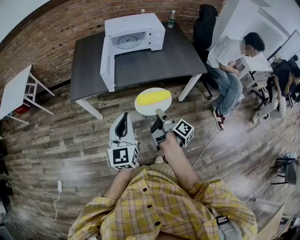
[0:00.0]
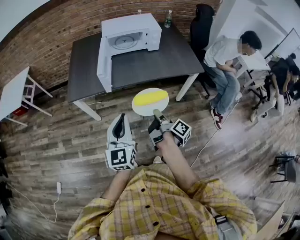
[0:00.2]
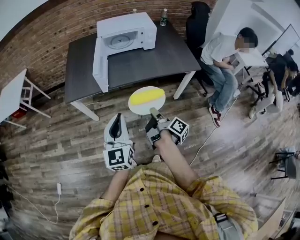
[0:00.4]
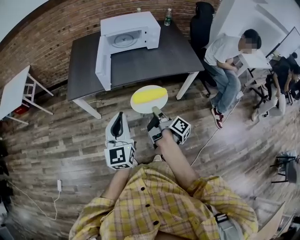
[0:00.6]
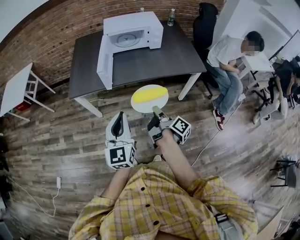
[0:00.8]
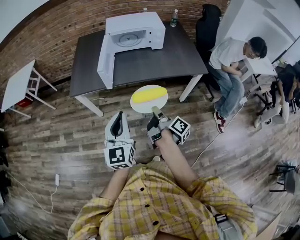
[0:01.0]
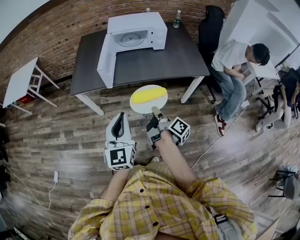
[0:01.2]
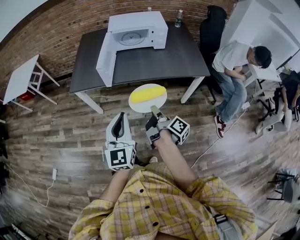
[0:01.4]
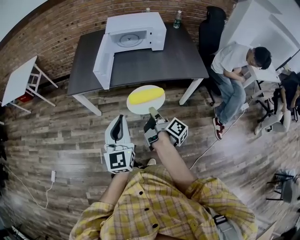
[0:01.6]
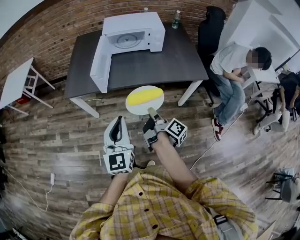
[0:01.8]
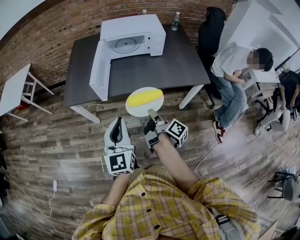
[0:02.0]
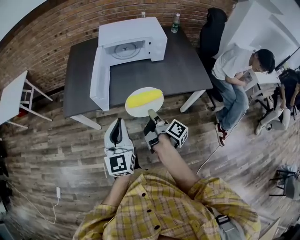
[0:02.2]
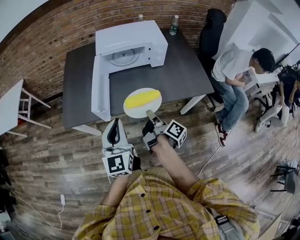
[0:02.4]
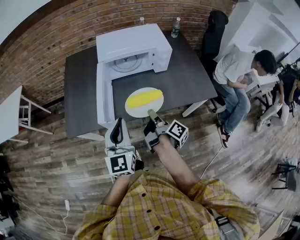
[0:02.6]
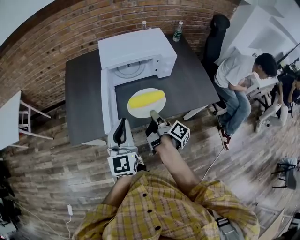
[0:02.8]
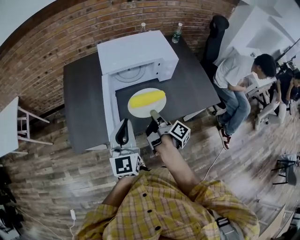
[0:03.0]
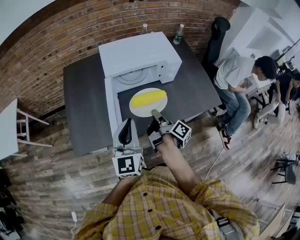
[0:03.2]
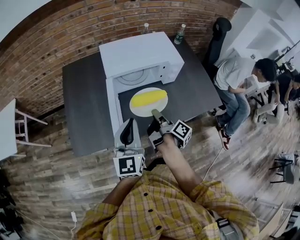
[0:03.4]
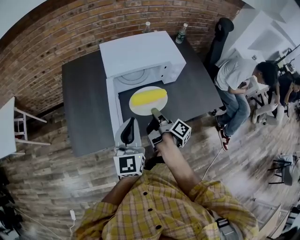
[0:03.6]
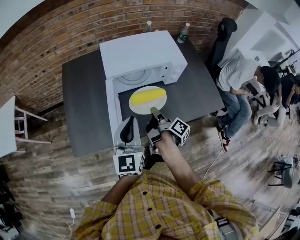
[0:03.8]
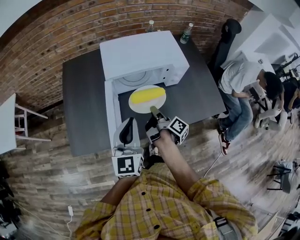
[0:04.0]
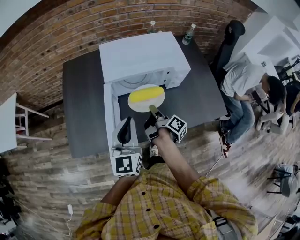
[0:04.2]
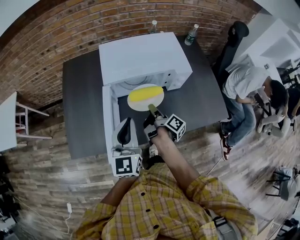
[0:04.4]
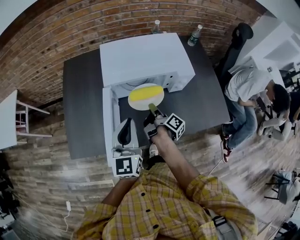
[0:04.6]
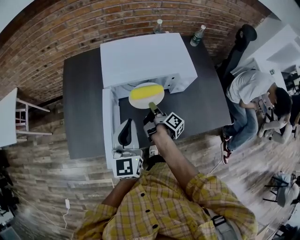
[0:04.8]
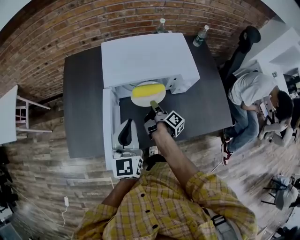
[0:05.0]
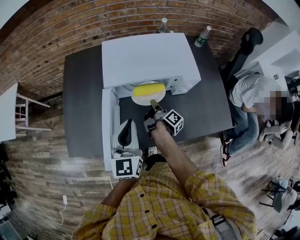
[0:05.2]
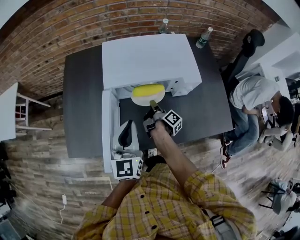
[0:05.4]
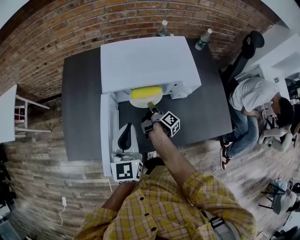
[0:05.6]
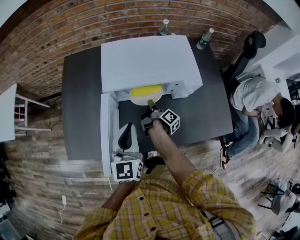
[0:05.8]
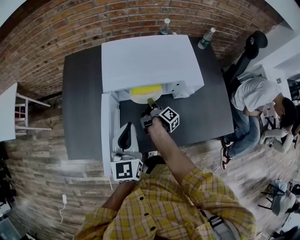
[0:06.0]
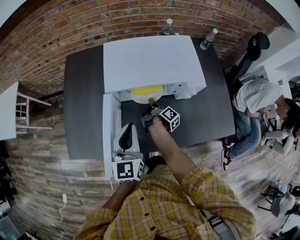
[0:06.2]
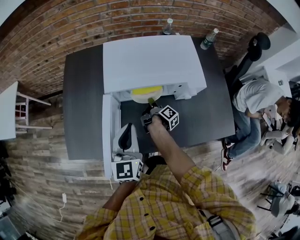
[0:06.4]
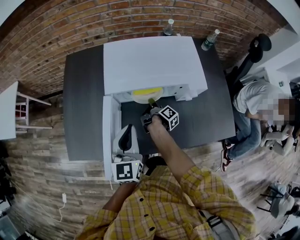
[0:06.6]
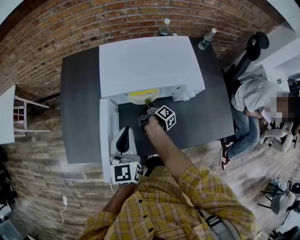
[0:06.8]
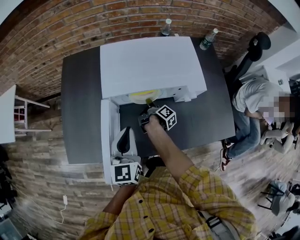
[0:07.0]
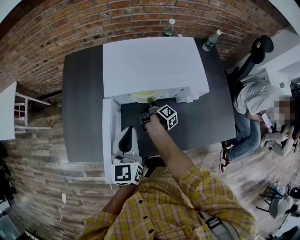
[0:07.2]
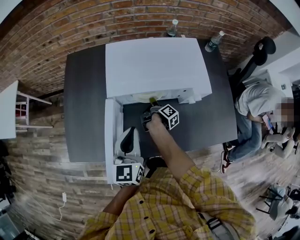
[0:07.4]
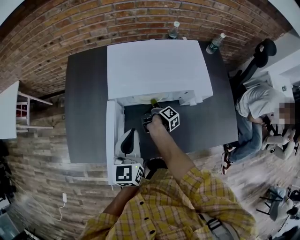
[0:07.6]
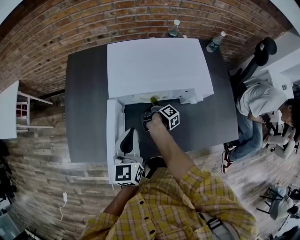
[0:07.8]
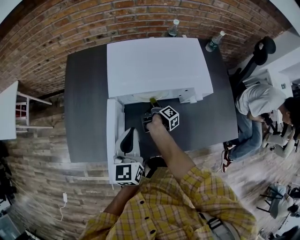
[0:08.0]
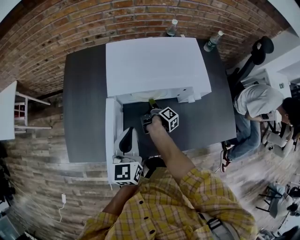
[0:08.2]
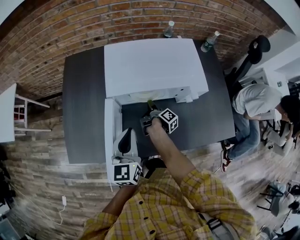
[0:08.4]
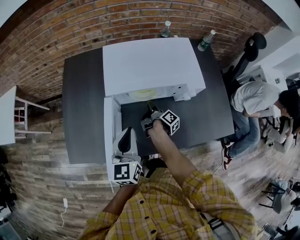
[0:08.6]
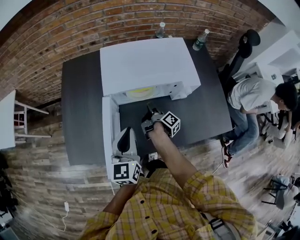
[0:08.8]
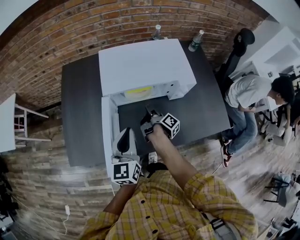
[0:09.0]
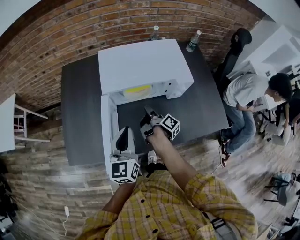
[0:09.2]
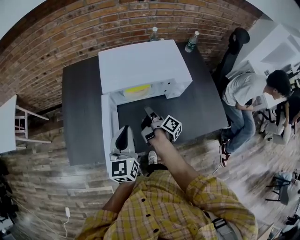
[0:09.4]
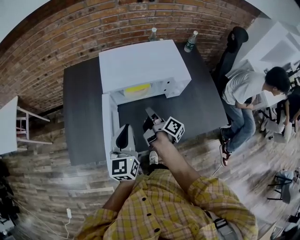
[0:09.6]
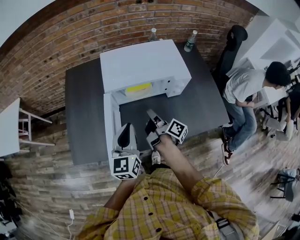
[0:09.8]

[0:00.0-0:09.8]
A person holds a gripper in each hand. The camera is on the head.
0.0 to 1.4 s: The left gripper changes place by roughly 5 cm.
1.4 to 2.8 s: The left gripper shifts by some 35 cm.
2.8 to 4.2 s: The left gripper shifts by approximately 15 cm.
4.2 to 5.6 s: The left gripper moves about 10 cm.
8.4 to 9.8 s: The left gripper changes place by roughly 5 cm.

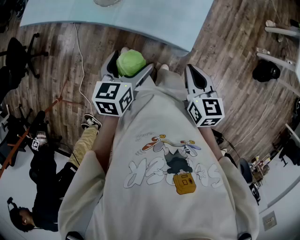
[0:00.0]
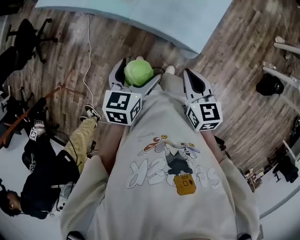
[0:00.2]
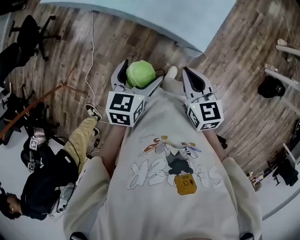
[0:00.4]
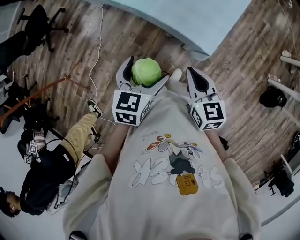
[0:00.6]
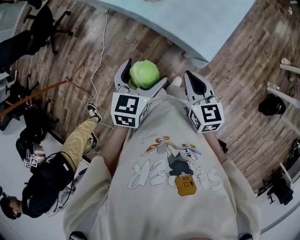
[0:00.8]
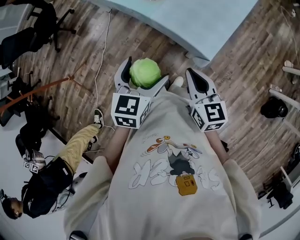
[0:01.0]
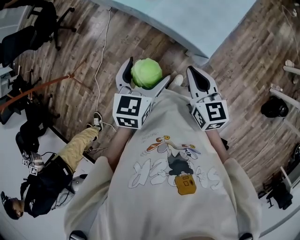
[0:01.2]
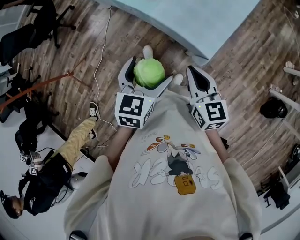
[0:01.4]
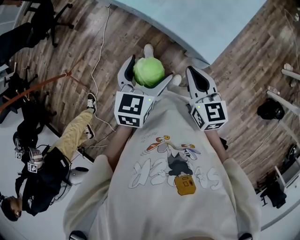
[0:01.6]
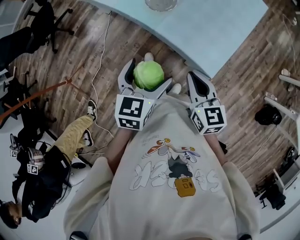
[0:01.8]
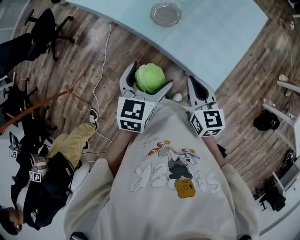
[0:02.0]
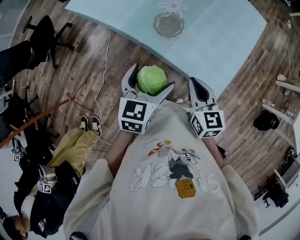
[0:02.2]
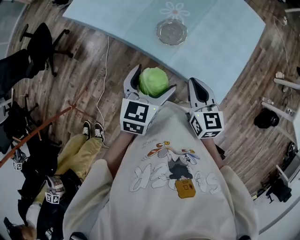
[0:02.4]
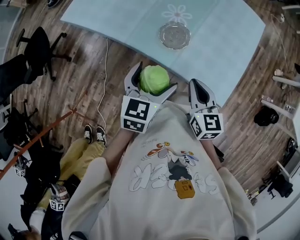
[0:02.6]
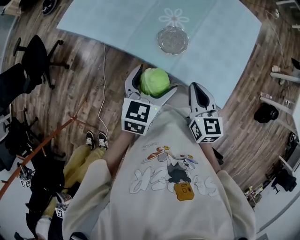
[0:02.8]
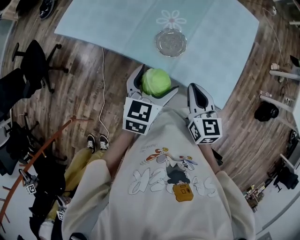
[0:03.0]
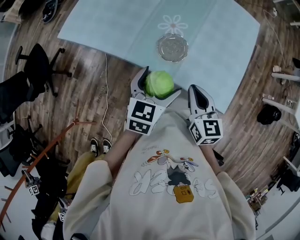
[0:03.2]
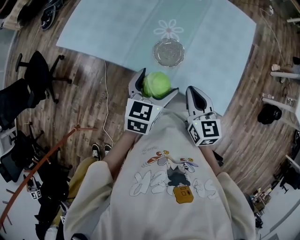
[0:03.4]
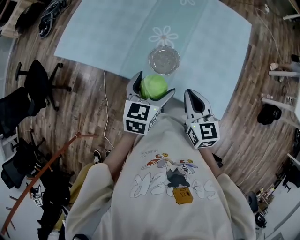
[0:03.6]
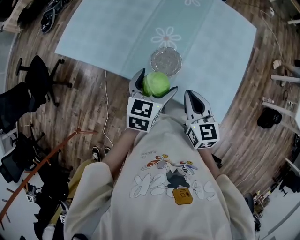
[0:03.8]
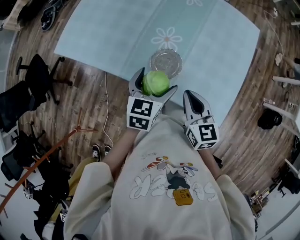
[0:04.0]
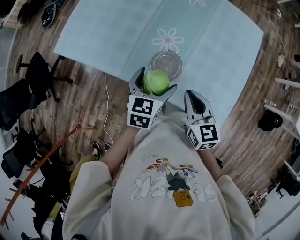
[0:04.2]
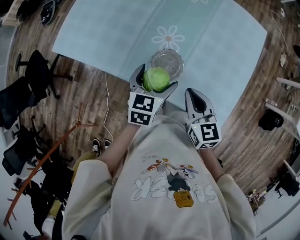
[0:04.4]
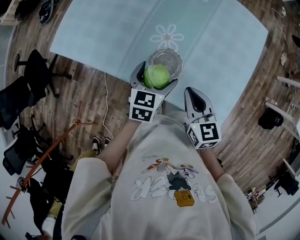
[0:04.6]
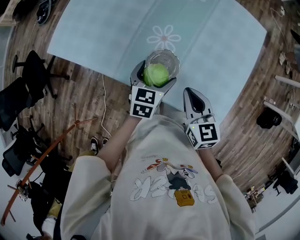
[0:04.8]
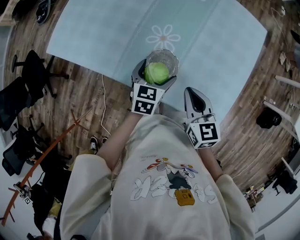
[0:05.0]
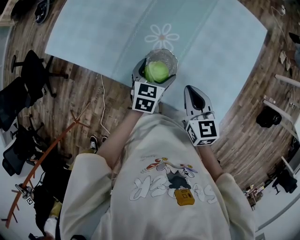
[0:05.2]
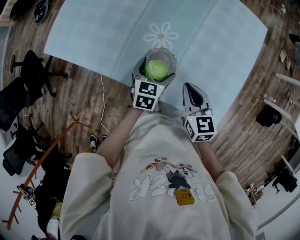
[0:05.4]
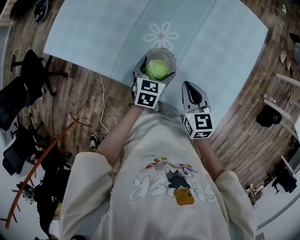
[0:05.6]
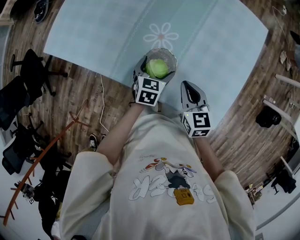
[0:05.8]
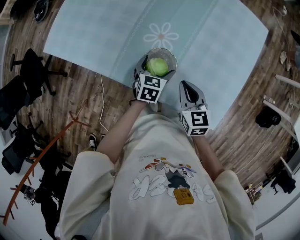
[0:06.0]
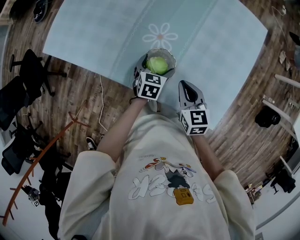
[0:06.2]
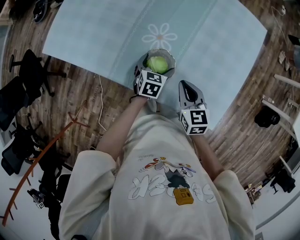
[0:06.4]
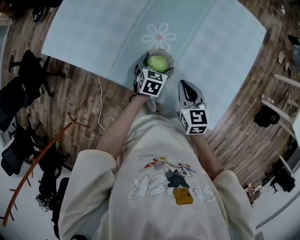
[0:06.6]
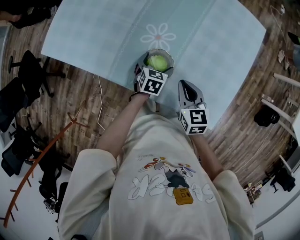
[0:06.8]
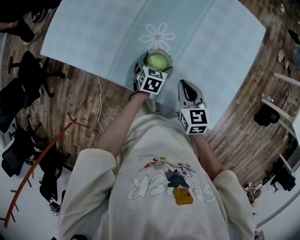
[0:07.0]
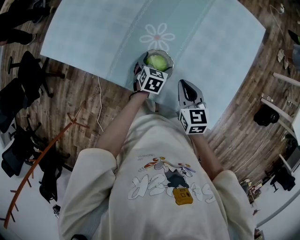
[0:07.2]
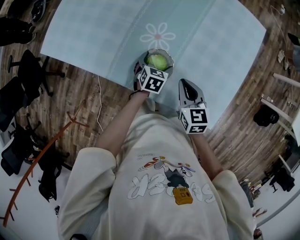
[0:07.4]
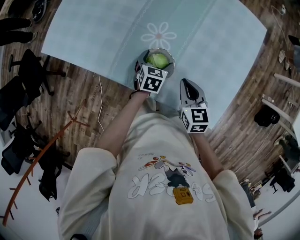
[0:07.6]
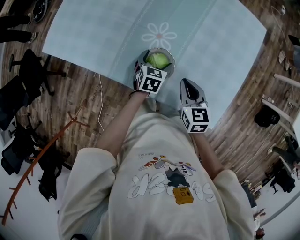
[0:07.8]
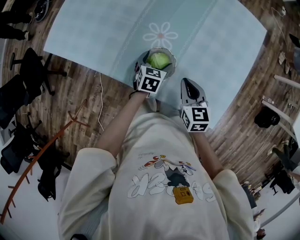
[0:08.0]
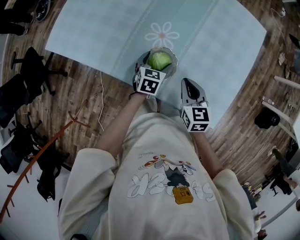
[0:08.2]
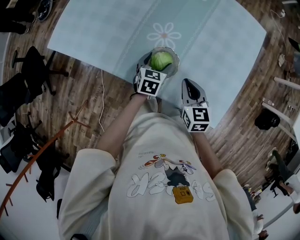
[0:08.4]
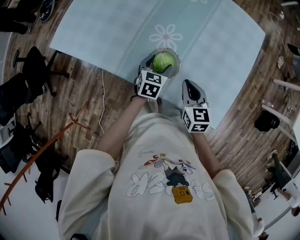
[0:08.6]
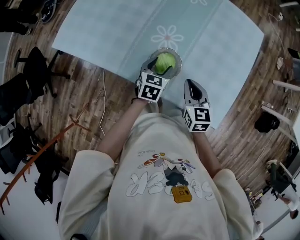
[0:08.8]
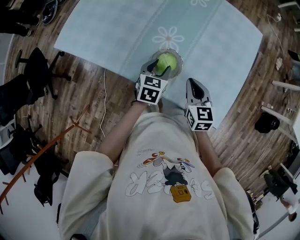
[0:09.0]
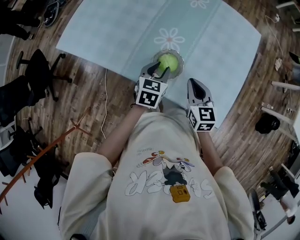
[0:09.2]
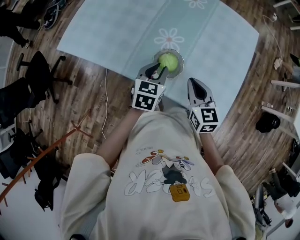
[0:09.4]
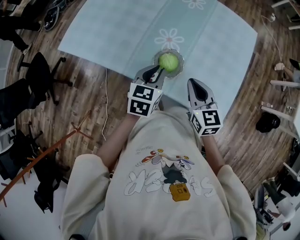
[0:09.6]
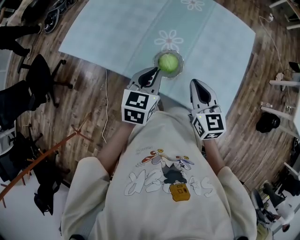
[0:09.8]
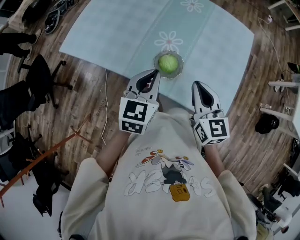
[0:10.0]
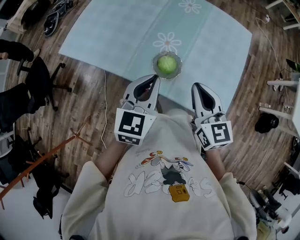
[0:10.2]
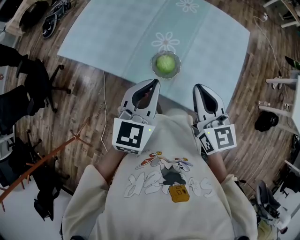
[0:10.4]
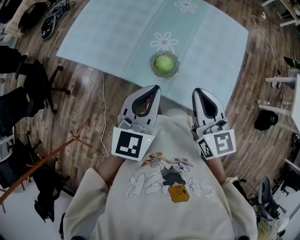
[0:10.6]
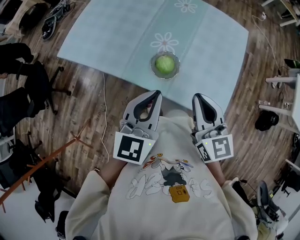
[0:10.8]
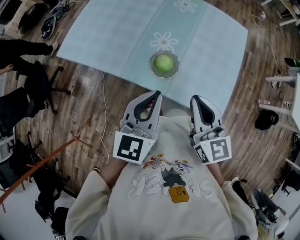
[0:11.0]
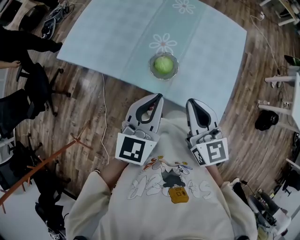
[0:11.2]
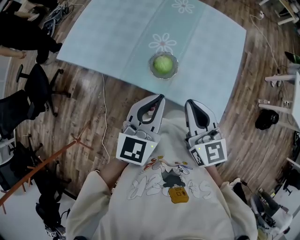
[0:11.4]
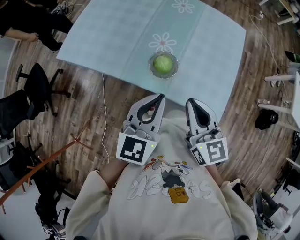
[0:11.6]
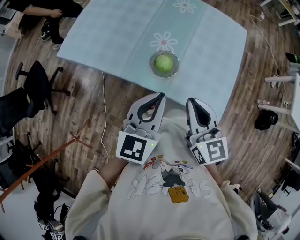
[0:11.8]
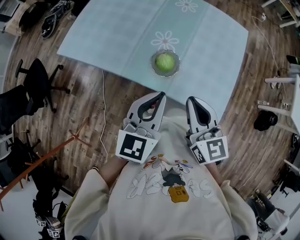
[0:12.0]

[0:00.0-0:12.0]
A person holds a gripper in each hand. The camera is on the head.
0.0 to 1.6 s: The right gripper travels to the left by some 10 cm, and swivels roughly 20 degrees; the left gripper is displaced backward by about 5 cm.
1.6 to 3.0 s: The two grippers go approximately 25 cm forward and to the left.
3.0 to 4.4 s: The right gripper is displaced forward by approximately 10 cm; the left gripper moves forward and downward, roughly 15 cm.
4.4 to 6.0 s: The left gripper shifts some 15 cm downward. The right gripper shifts about 5 cm downward.
6.0 to 7.6 s: The grippers stay close to where they were, moving slightly.
7.6 to 9.0 s: The left gripper shifts approximately 10 cm upward and backward, and closes up.
9.0 to 10.4 s: The left gripper travels upward and backward by roughly 25 cm, turns by approximately 30 degrees, and closes; the right gripper shifts some 20 cm upward.
10.4 to 12.0 s: The right gripper heads backward, covering about 5 cm. Meanwhile the left gripper changes place by roughly 5 cm.

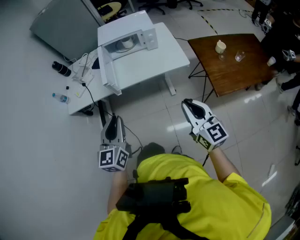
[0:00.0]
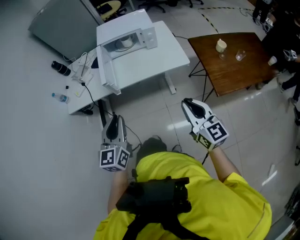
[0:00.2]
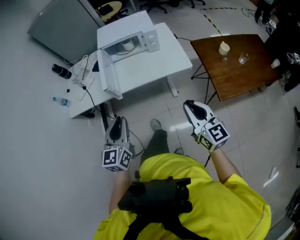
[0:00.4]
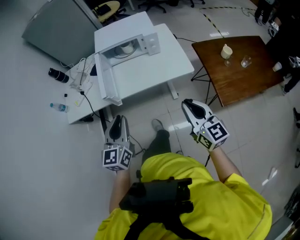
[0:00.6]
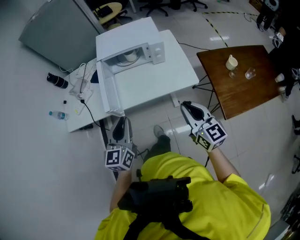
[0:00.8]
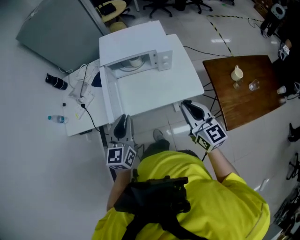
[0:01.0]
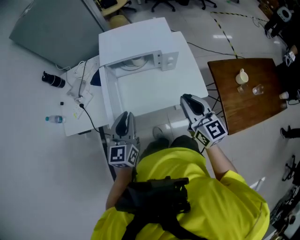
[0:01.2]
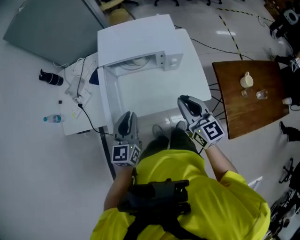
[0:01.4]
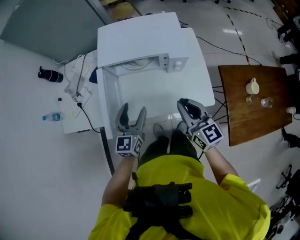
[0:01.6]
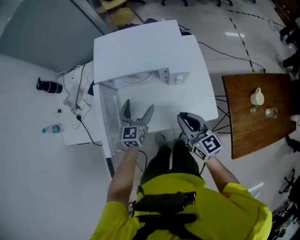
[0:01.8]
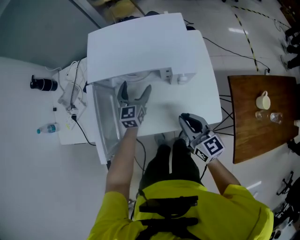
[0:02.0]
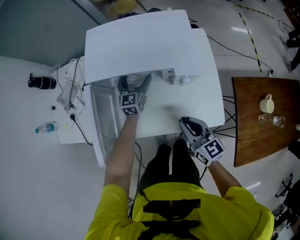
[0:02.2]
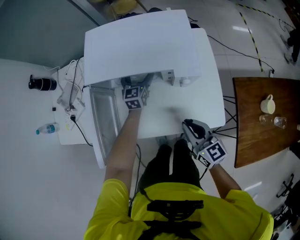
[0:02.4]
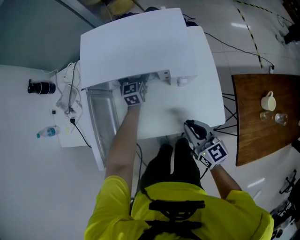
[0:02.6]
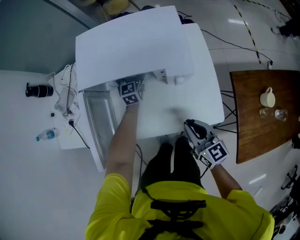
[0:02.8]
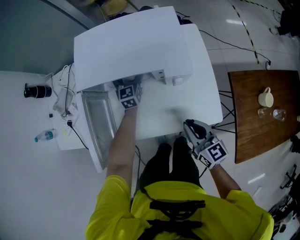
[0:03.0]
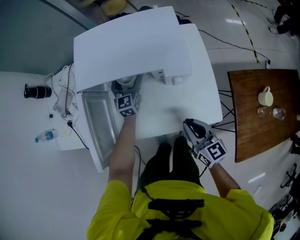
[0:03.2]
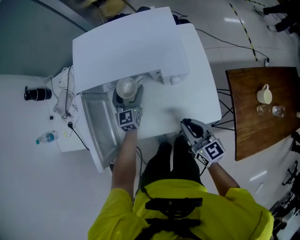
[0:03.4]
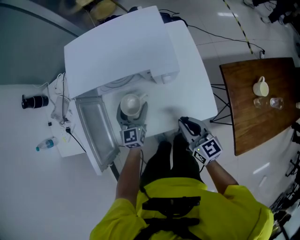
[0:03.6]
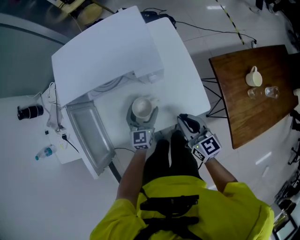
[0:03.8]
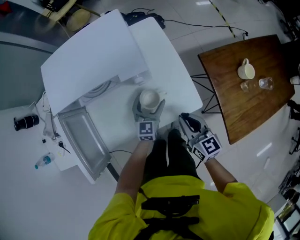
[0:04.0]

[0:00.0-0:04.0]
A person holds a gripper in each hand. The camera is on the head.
0.0 to 1.4 s: The grippers both shift forward by approximately 40 cm.
1.4 to 2.6 s: The left gripper travels forward and downward by about 40 cm, and opens its fingers. Meanwhile the right gripper is displaced downward by approximately 20 cm.
2.6 to 4.0 s: The left gripper heads backward and to the right, covering roughly 30 cm, and swivels about 20 degrees; the right gripper goes approximately 10 cm to the right.
